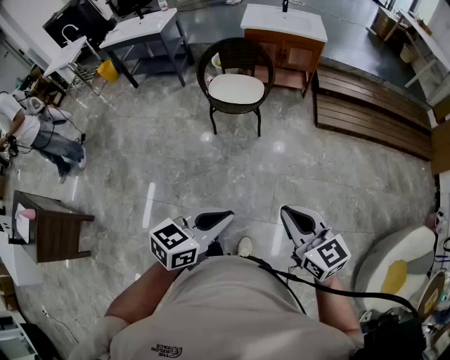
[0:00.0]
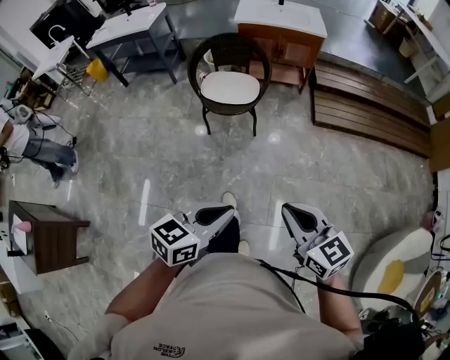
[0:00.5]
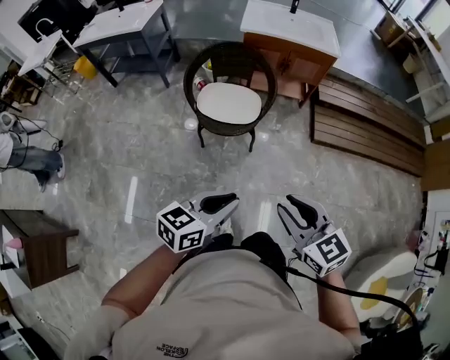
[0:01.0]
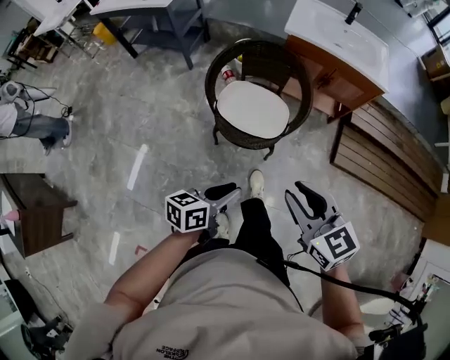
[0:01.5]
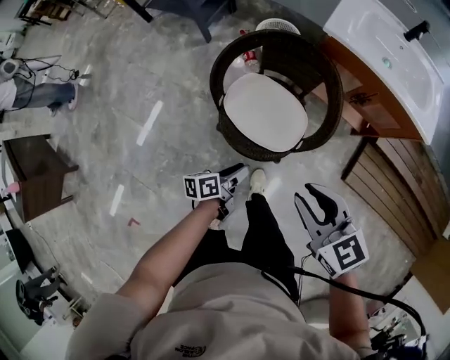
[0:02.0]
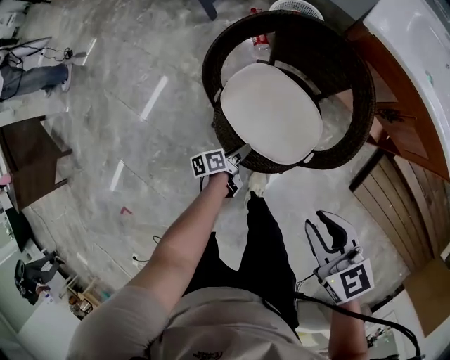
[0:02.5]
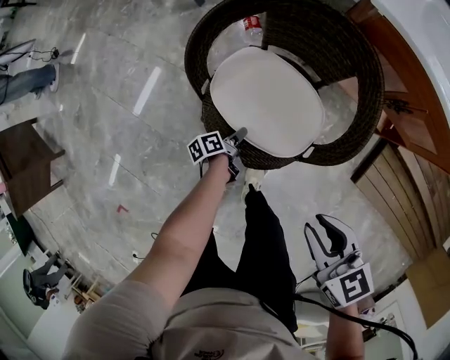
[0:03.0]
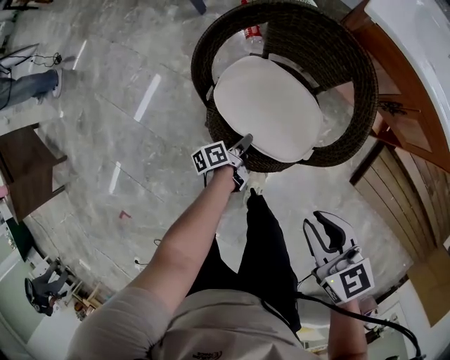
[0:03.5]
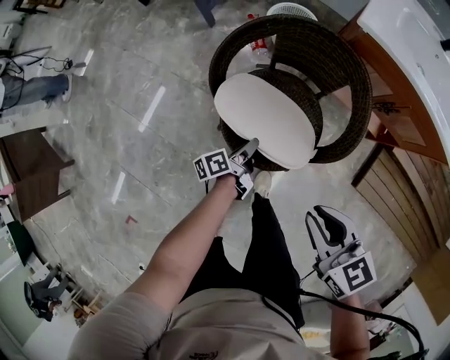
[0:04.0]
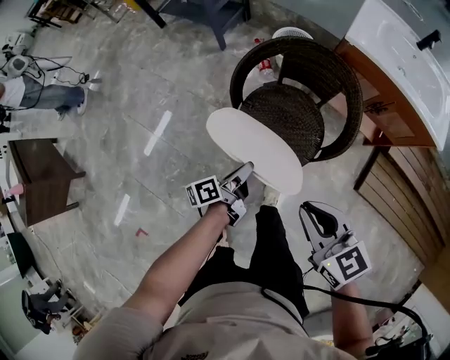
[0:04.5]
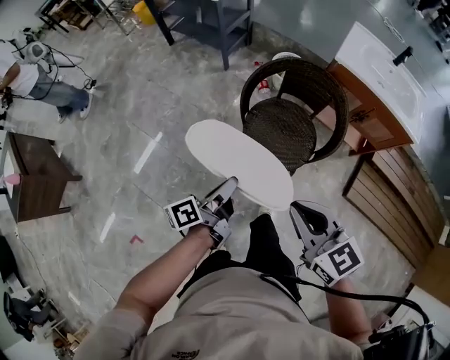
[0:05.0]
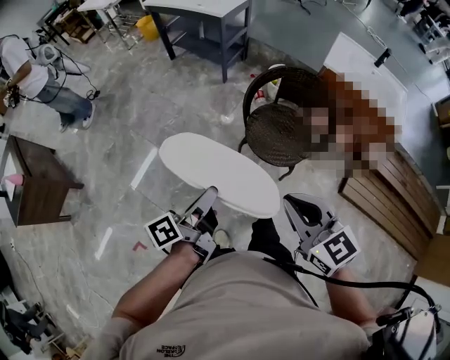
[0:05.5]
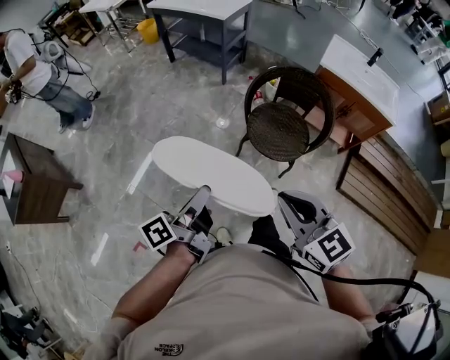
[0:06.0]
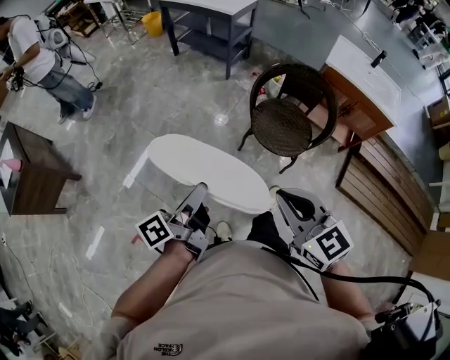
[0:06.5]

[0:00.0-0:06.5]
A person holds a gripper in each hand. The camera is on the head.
0:00.0 to 0:02.0: The two grippers travel together, approximately 70 cm. The left gripper rotates around the line of its fingers by approximately 60 degrees, counterclockwise from behind, and opens up, while the right gripper rotates some 30 degrees, and opens its fingers.
0:02.0 to 0:04.5: Both grippers travel together to the left, about 5 cm. The right gripper moves some 20 cm downward and comes back. The left gripper goes downward and returns, approximately 30 cm each way, and closes up.
0:04.5 to 0:06.5: The left gripper travels to the left, upward and backward by about 50 cm, and swivels roughly 20 degrees. Meanwhile the right gripper goes some 40 cm to the left, backward and upward.

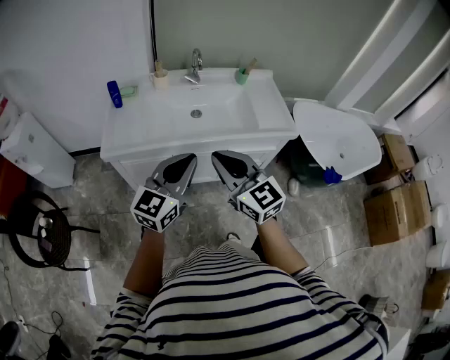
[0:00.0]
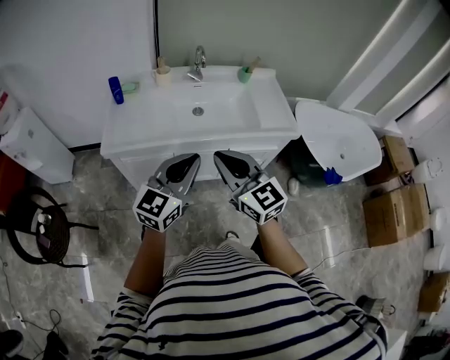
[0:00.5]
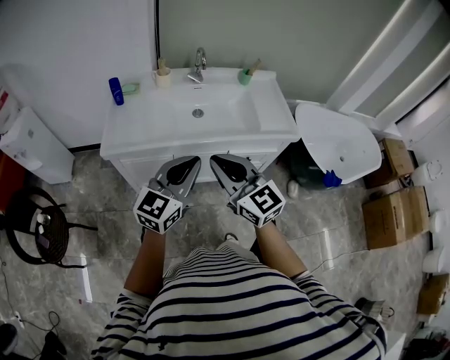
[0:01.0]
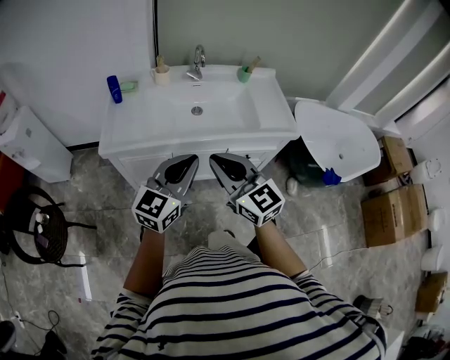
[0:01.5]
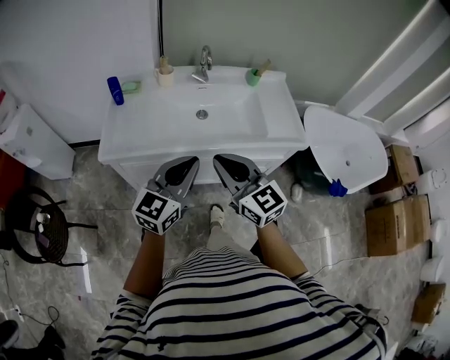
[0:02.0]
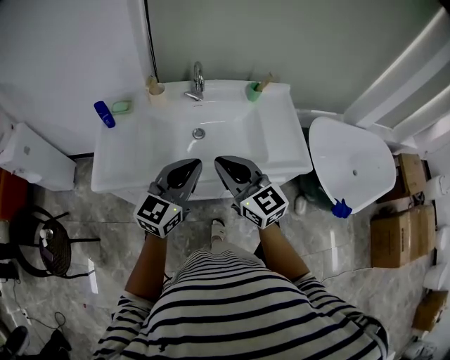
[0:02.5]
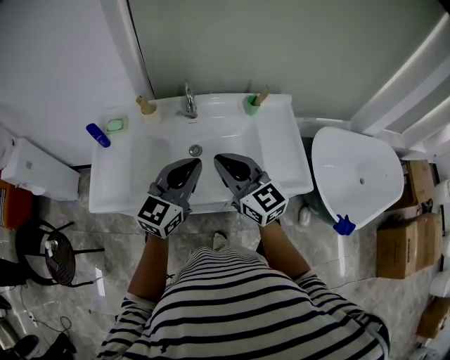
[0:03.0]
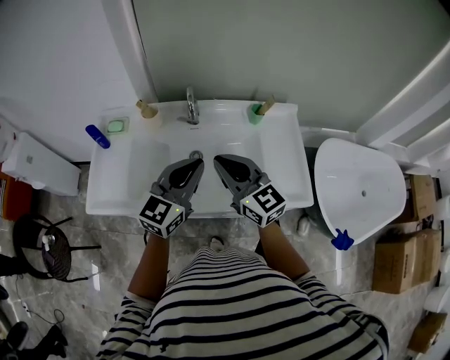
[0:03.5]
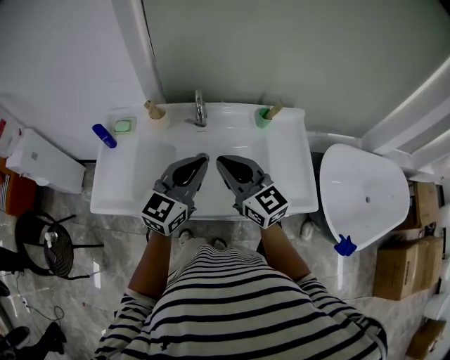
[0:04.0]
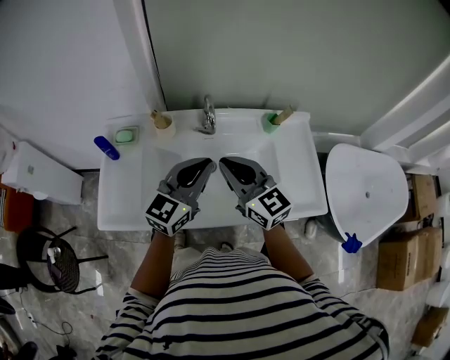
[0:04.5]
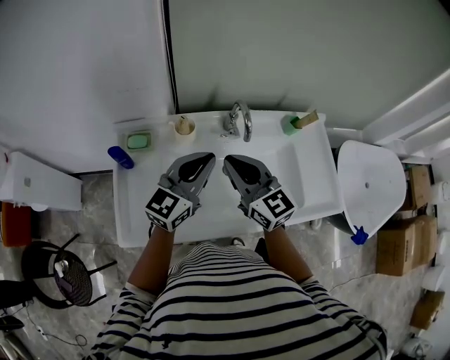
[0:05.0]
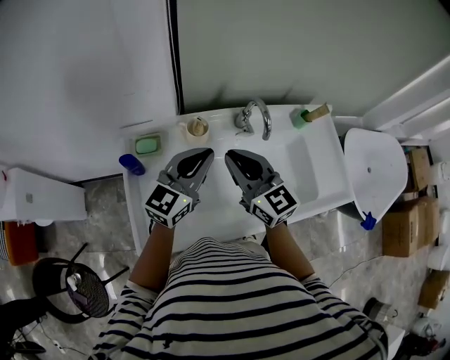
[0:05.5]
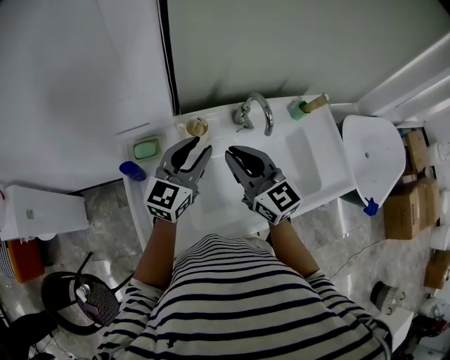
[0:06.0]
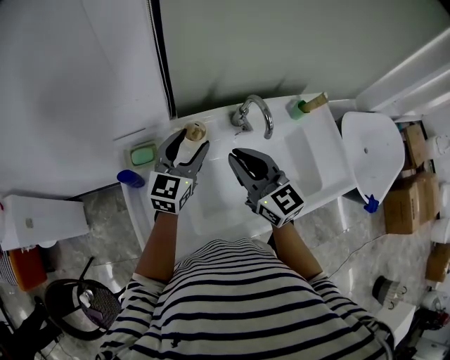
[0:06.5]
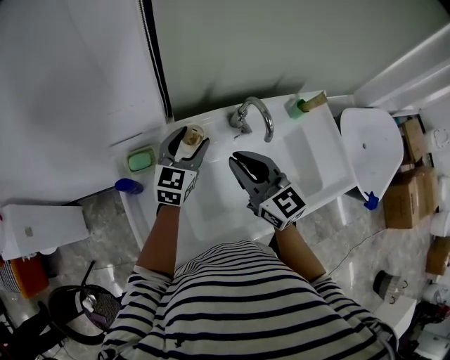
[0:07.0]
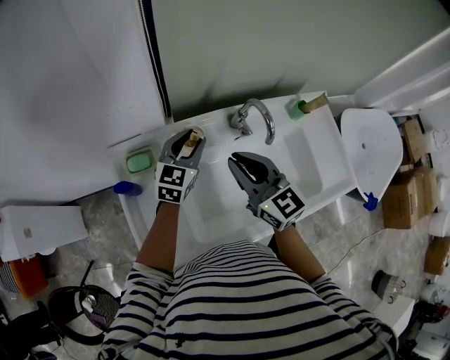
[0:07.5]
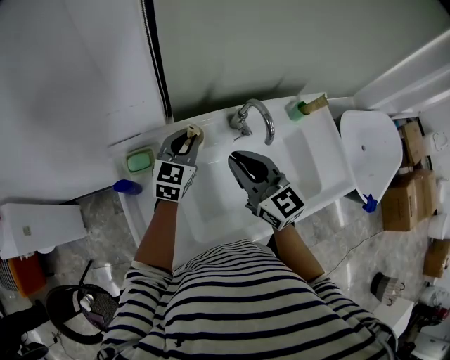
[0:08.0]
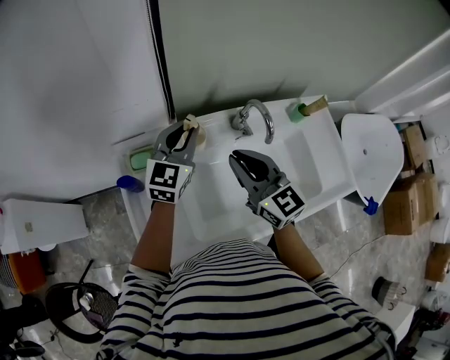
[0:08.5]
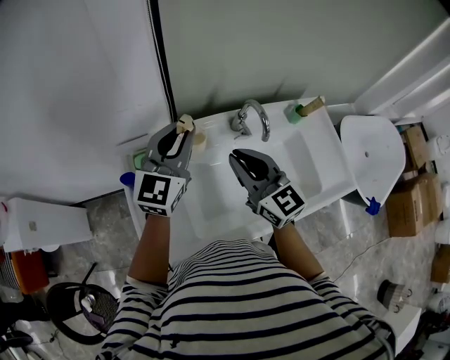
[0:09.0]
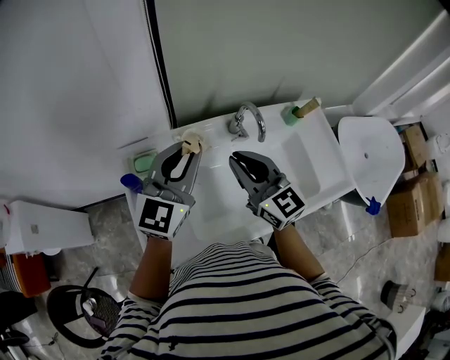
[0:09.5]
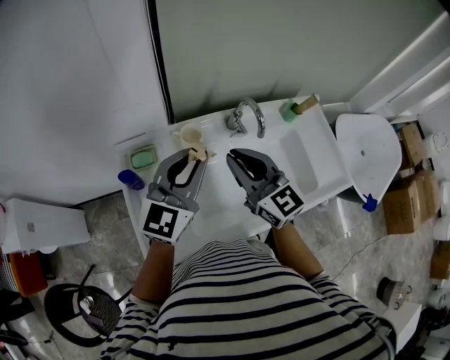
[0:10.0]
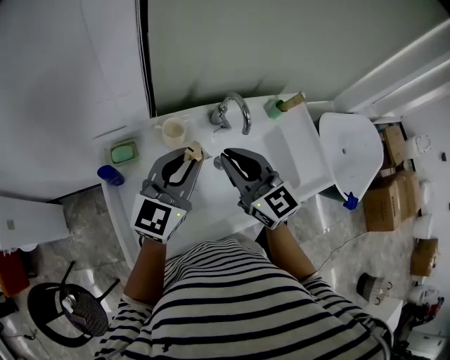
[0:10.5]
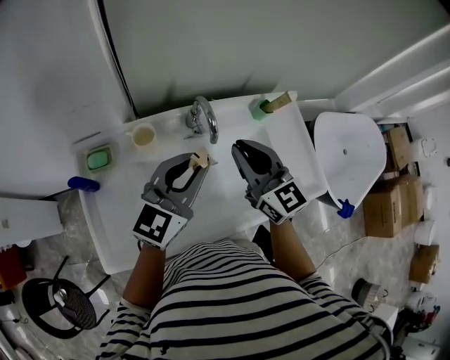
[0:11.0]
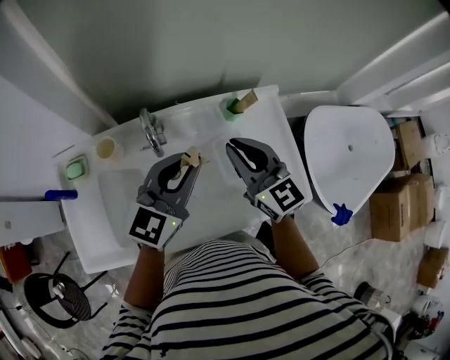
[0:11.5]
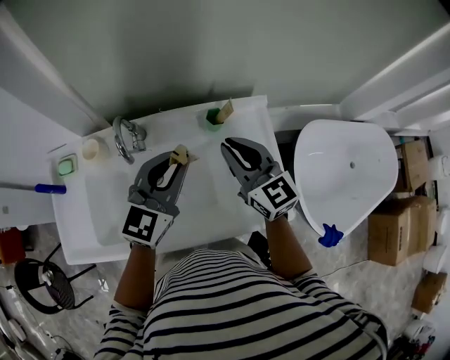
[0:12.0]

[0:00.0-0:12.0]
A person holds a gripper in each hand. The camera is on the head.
0:00.0 to 0:02.0: Both grippers travel together forward, roughly 5 cm.
0:02.0 to 0:04.0: The right gripper shifts about 25 cm forward, while the left gripper is displaced forward and to the right by roughly 30 cm.
0:04.0 to 0:06.0: The two grippers go roughly 25 cm to the left and forward. The left gripper opens.
0:06.0 to 0:08.0: The left gripper is displaced forward and downward by approximately 10 cm, and closes up.
0:08.0 to 0:10.0: The left gripper moves upward and backward, about 20 cm, while the right gripper shifts by some 5 cm.
0:10.0 to 0:12.0: Both grippers travel together to the right, about 35 cm.

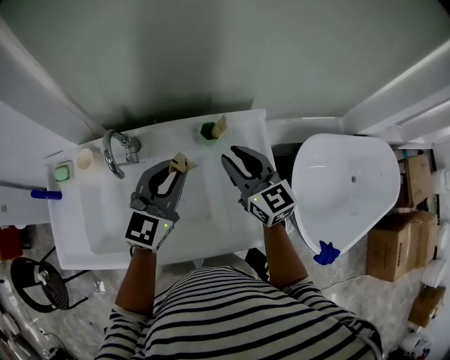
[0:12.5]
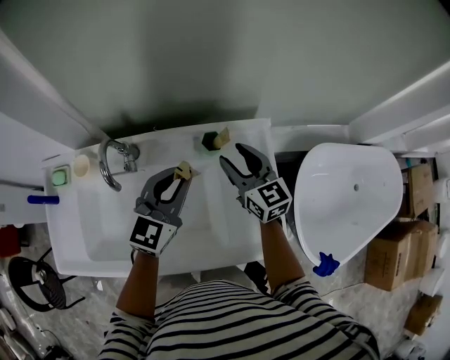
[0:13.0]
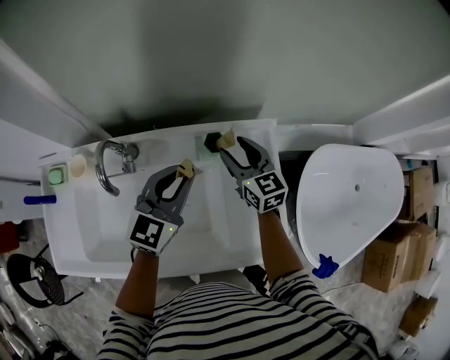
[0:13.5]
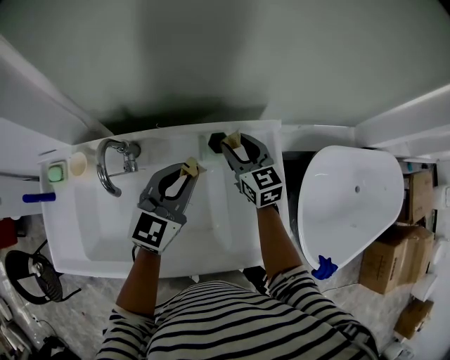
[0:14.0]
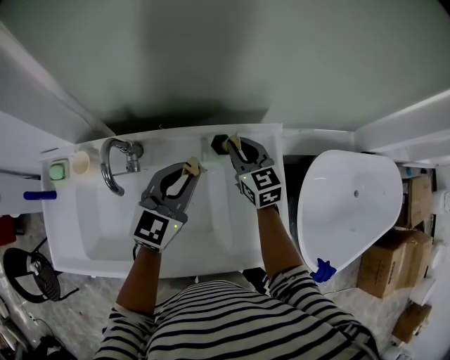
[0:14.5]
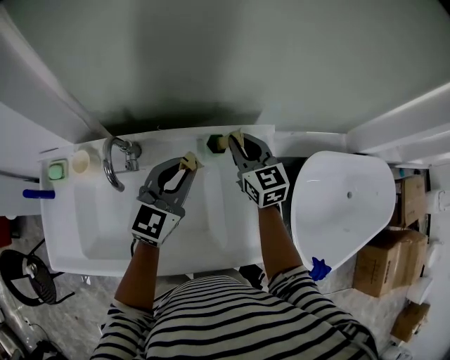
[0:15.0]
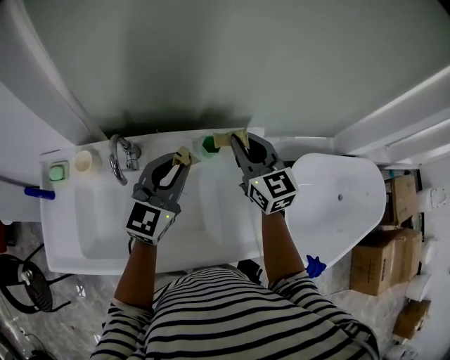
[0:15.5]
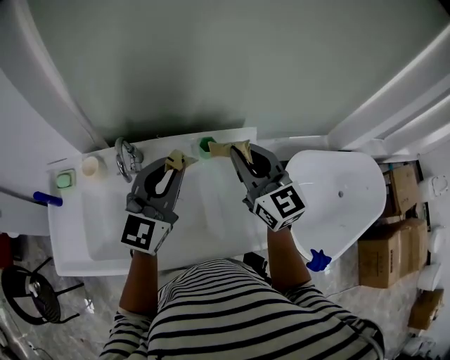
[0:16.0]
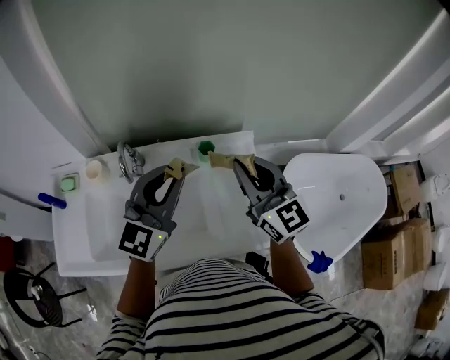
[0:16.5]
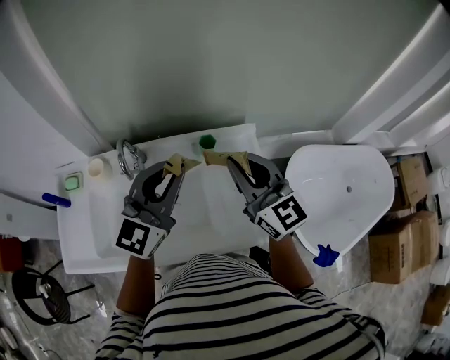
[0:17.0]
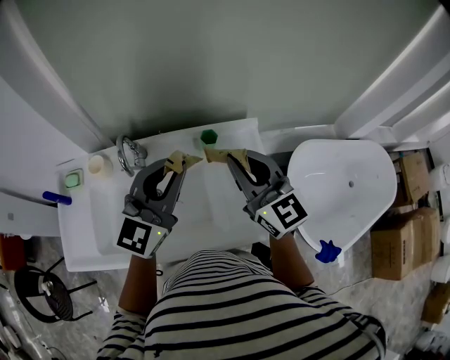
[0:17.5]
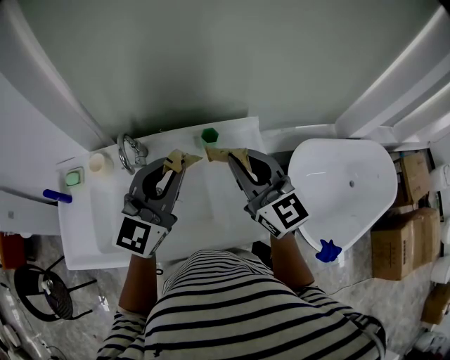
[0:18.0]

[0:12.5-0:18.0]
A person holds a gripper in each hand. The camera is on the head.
0:12.5 to 0:14.5: The right gripper goes about 15 cm forward and downward, and opens and closes again. The left gripper shifts some 5 cm forward.
0:14.5 to 0:16.0: The right gripper goes about 25 cm upward and backward, and turns by about 20 degrees, while the left gripper travels upward and backward by about 15 cm.
0:16.0 to 0:18.0: The right gripper shifts approximately 5 cm backward.

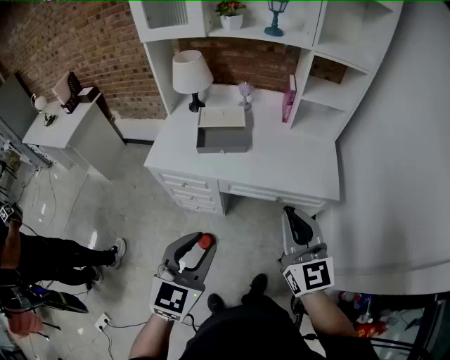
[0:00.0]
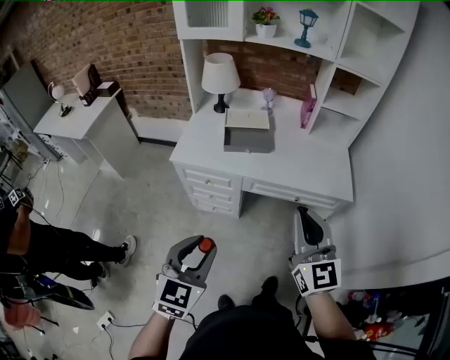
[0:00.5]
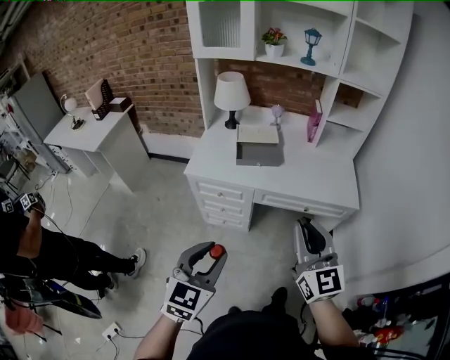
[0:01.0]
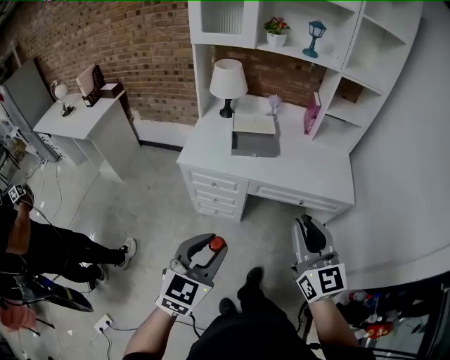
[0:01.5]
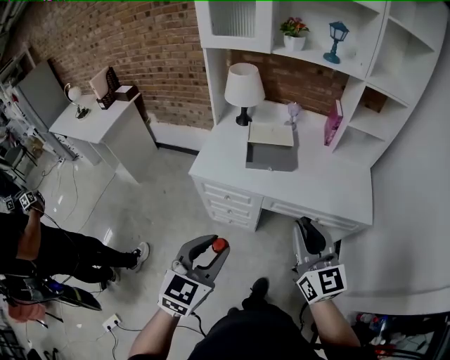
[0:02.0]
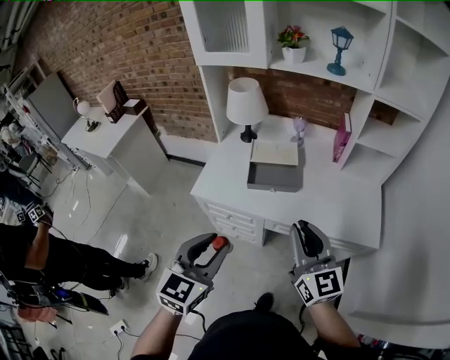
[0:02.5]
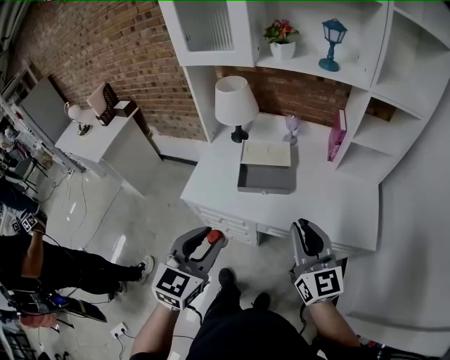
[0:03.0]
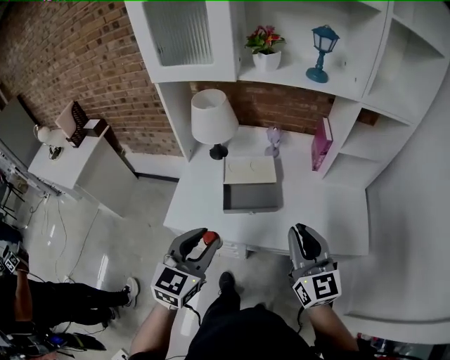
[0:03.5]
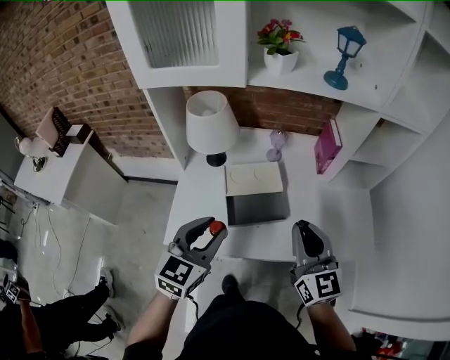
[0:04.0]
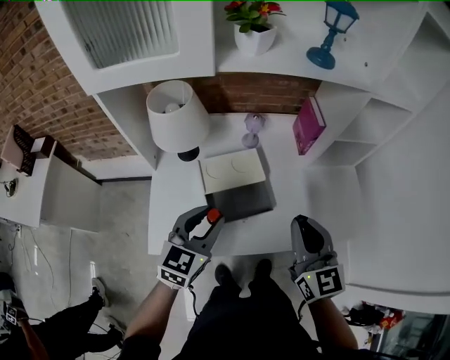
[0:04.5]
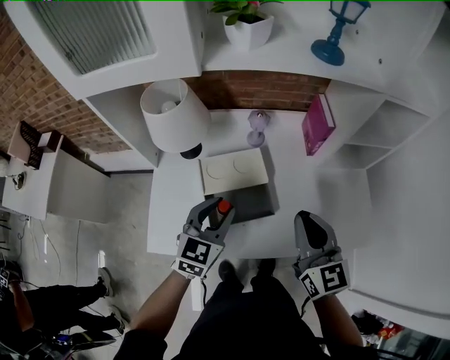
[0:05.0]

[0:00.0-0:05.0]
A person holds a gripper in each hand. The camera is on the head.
0:00.0 to 0:02.5: The two grippers go approximately 15 cm to the left and forward.
0:02.5 to 0:05.0: Both grippers travel together forward, approximately 35 cm. The right gripper changes its angle by about 20 degrees.
